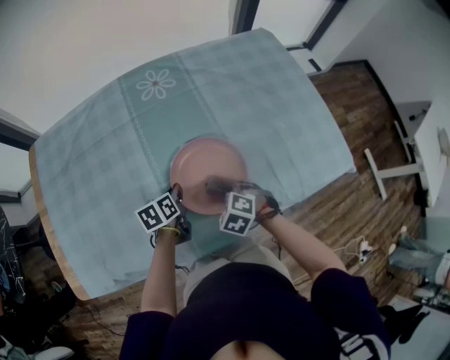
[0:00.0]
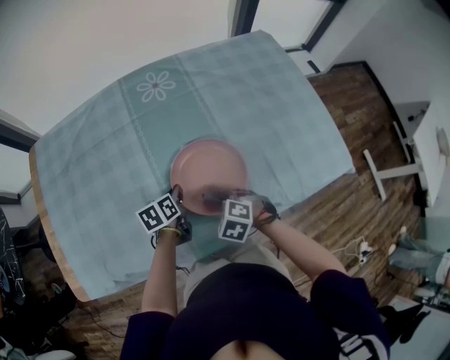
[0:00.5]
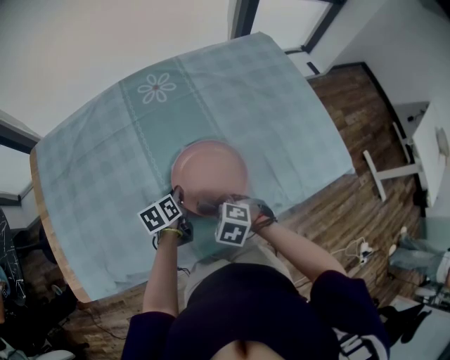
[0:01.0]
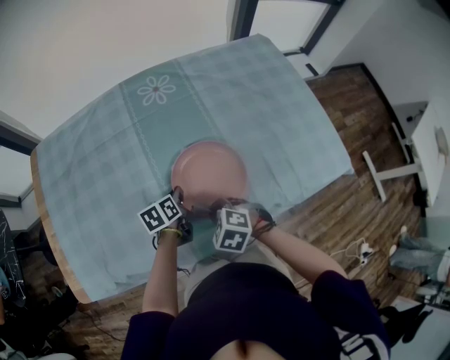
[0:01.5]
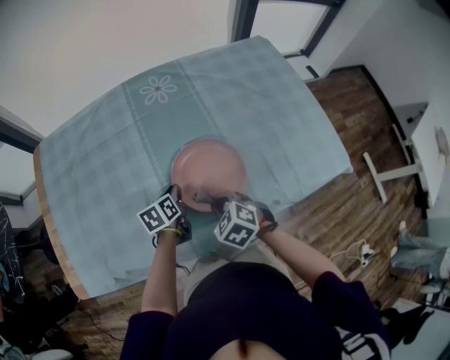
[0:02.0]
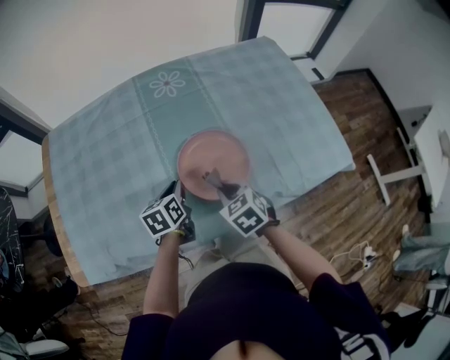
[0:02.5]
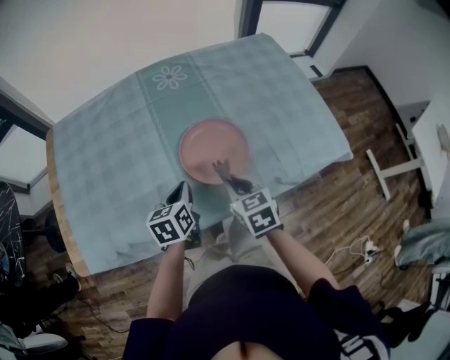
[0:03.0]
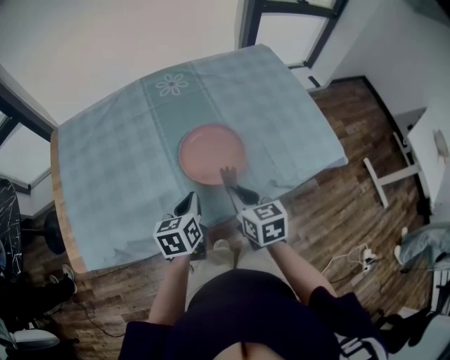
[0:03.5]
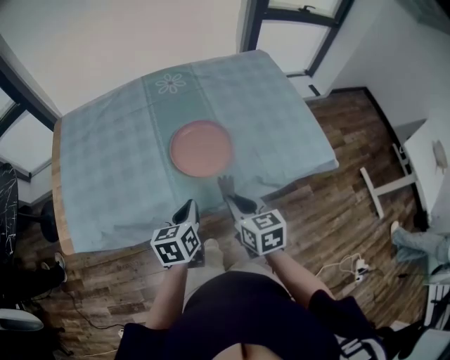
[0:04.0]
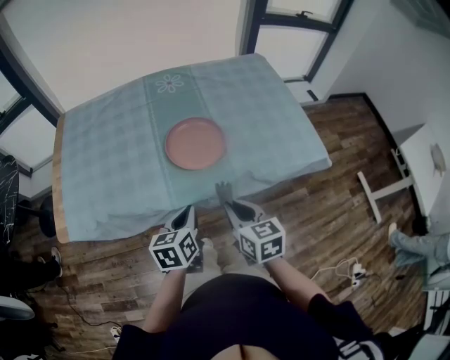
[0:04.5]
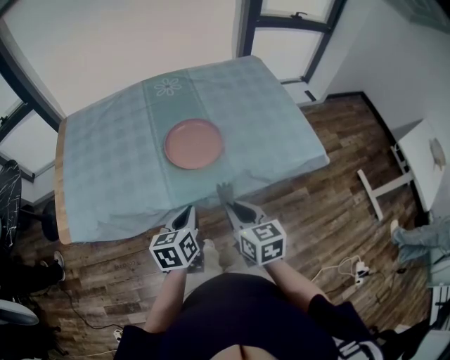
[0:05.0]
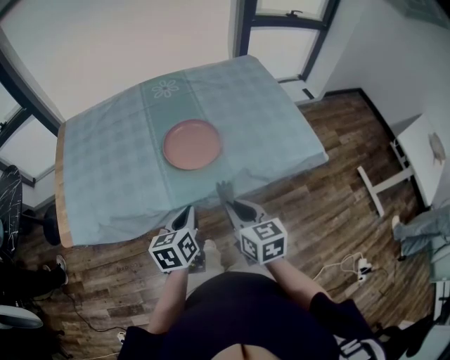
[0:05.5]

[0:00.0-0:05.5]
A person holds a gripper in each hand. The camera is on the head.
0:00.0 to 0:02.0: The right gripper goes some 5 cm upward.
0:02.0 to 0:03.5: The right gripper is displaced upward and backward by approximately 10 cm, and turns by about 50 degrees, while the left gripper shifts some 20 cm backward and upward.
0:03.5 to 0:05.5: Both grippers travel together backward and to the right, about 15 cm.

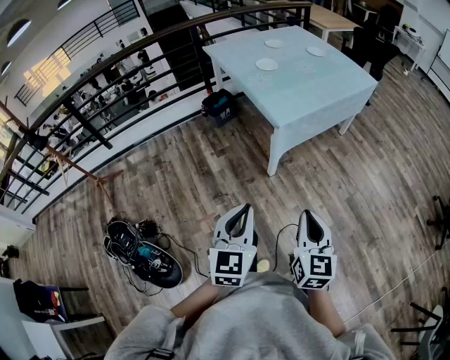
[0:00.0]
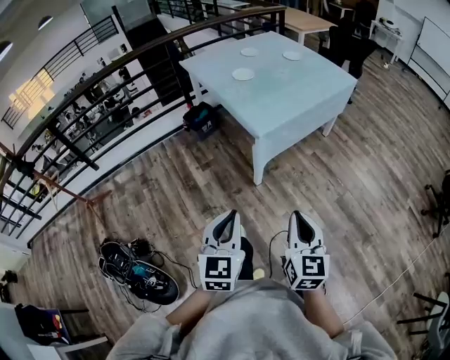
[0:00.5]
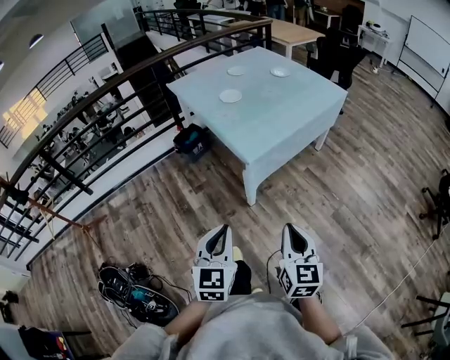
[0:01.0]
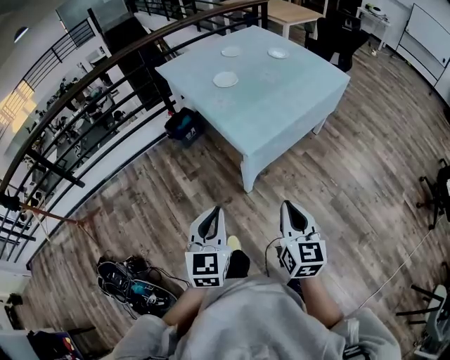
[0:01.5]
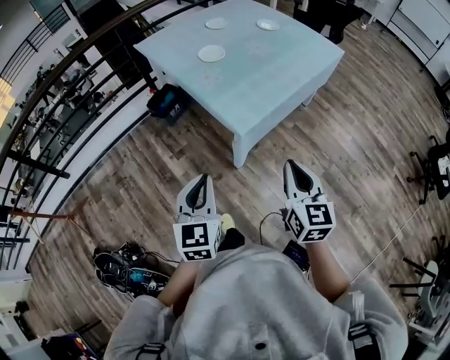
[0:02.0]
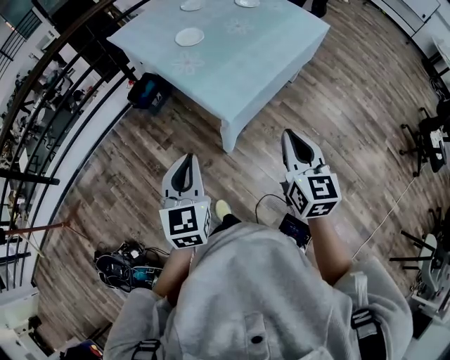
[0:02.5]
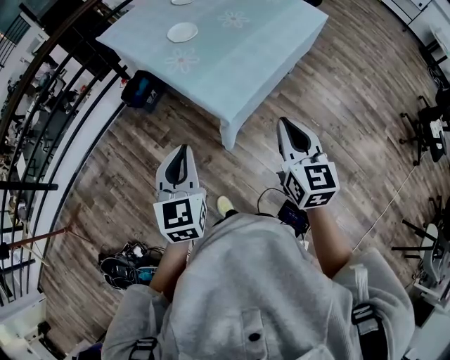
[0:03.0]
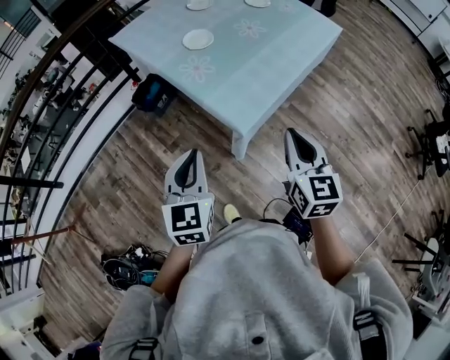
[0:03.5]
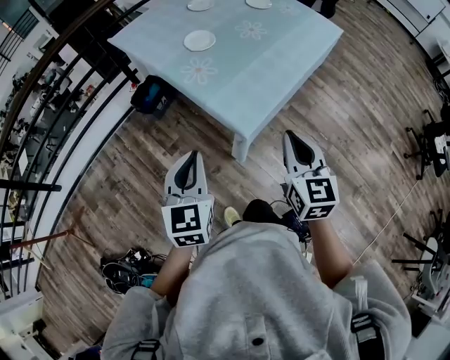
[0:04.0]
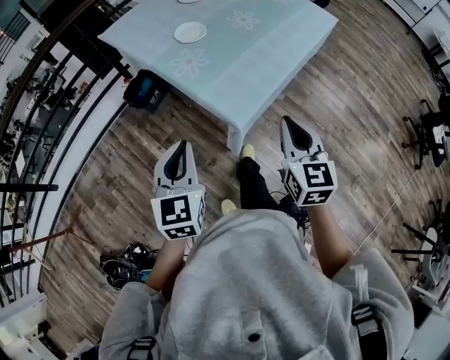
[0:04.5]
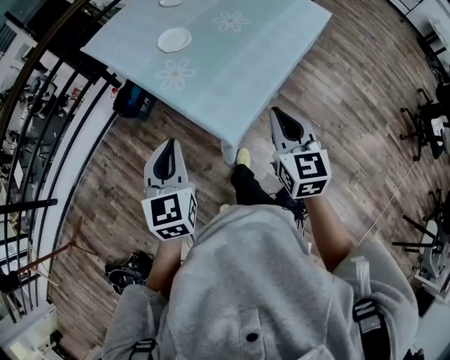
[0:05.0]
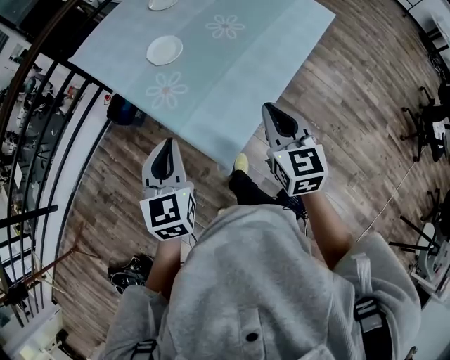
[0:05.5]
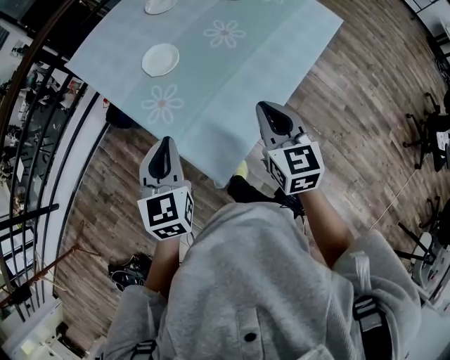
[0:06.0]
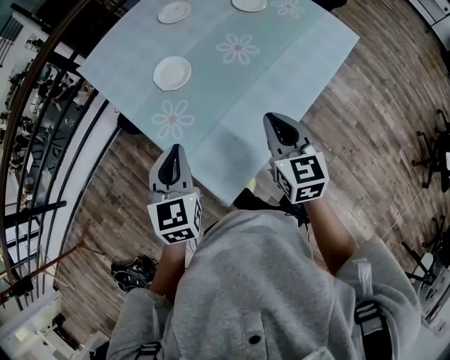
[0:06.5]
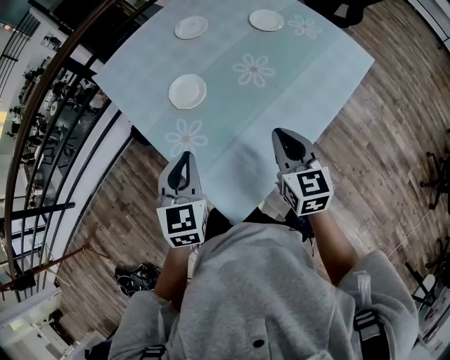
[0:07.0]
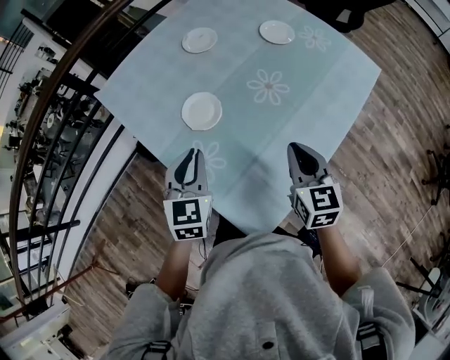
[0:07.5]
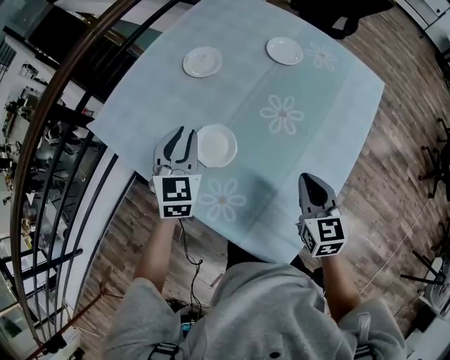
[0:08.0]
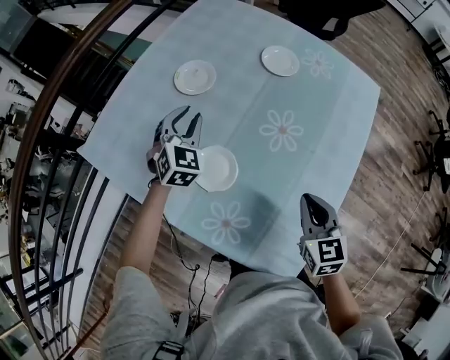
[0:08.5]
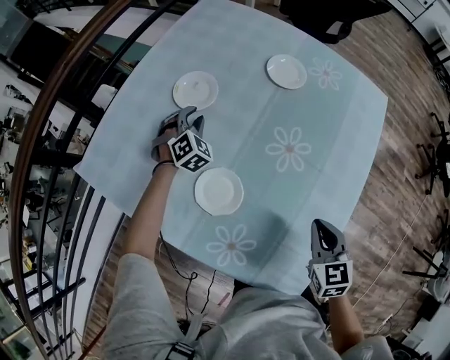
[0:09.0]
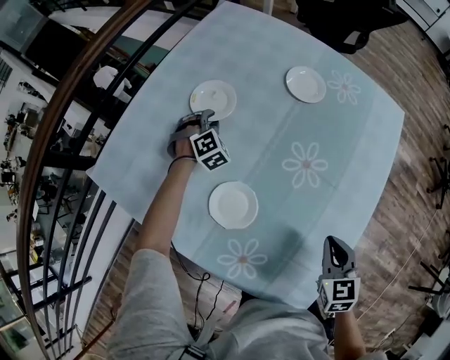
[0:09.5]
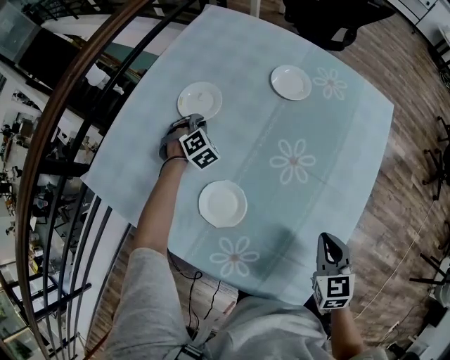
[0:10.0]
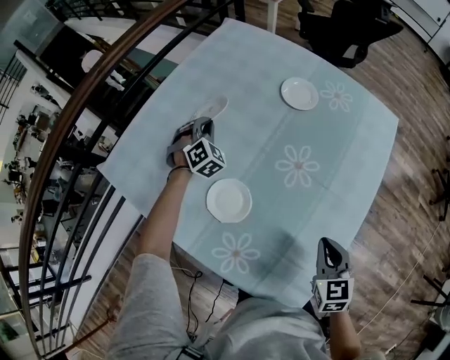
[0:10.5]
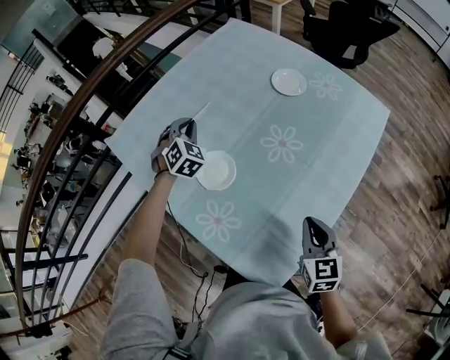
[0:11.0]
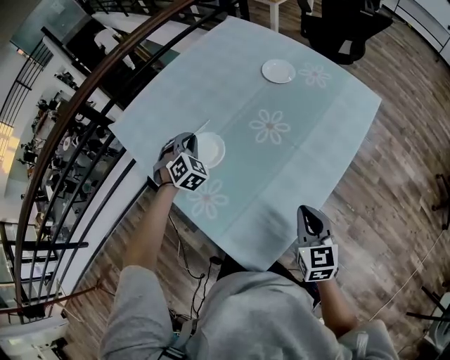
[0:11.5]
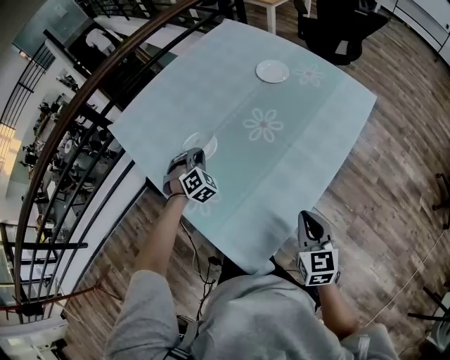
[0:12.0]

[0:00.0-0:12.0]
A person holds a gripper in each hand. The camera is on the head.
0:00.0 to 0:02.0: Both grippers travel together forward, some 25 cm.
0:02.0 to 0:04.0: Both grippers travel together forward, about 15 cm.
0:04.0 to 0:06.0: The two grippers go some 25 cm forward.
0:06.0 to 0:08.0: The left gripper heads forward, covering about 35 cm, and swivels some 20 degrees. Meanwhile the right gripper is displaced forward by roughly 15 cm.
0:08.0 to 0:10.0: The left gripper travels forward and downward by about 30 cm, and twists some 40 degrees clockwise, seen from behind.
0:10.0 to 0:12.0: The left gripper goes roughly 30 cm backward. The right gripper is displaced backward and to the right by approximately 15 cm, and changes its angle by some 20 degrees.

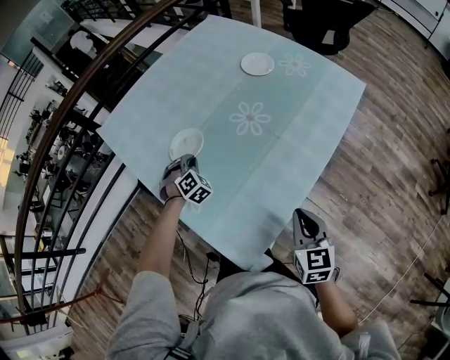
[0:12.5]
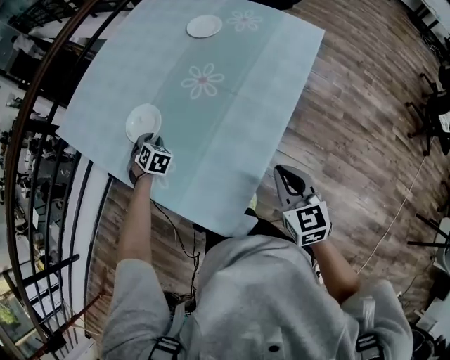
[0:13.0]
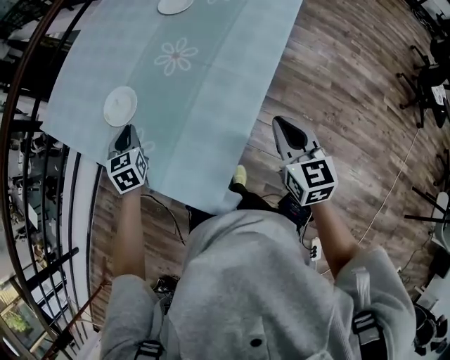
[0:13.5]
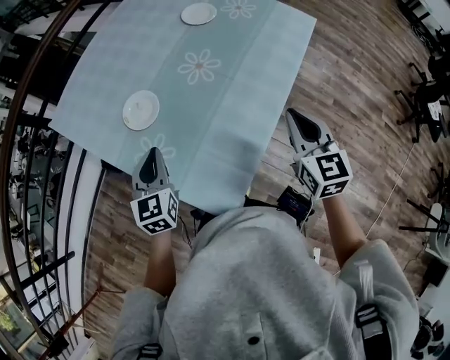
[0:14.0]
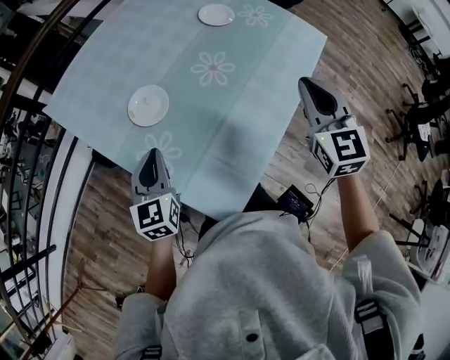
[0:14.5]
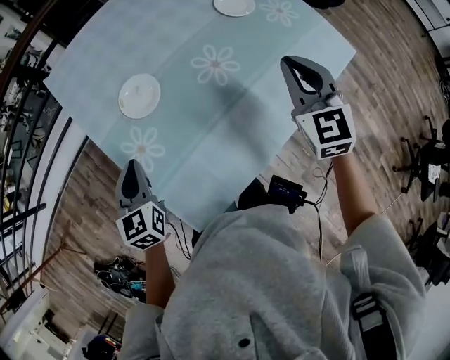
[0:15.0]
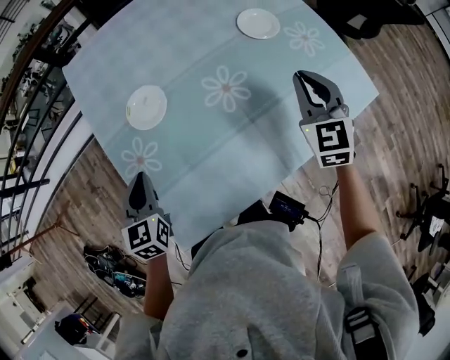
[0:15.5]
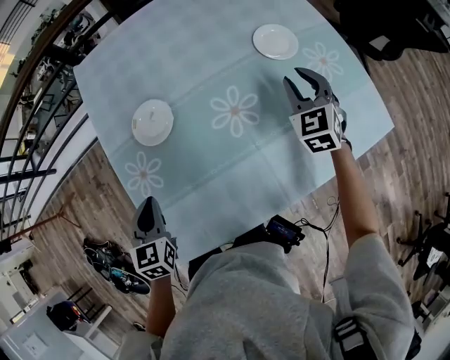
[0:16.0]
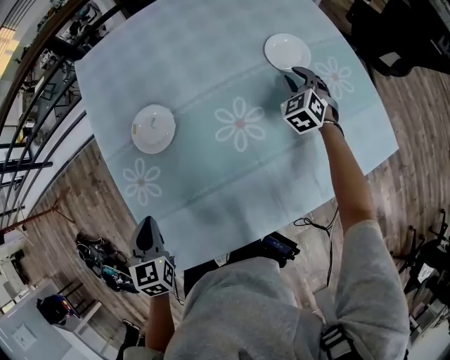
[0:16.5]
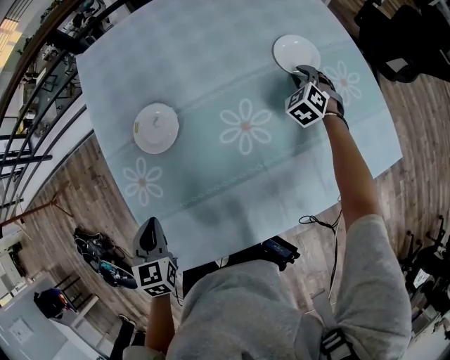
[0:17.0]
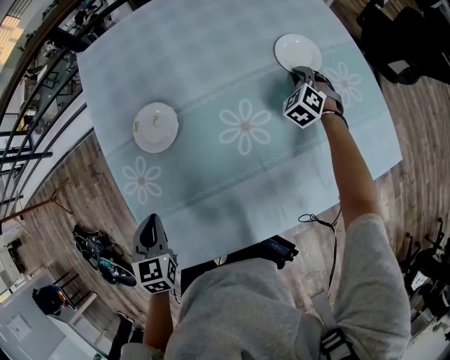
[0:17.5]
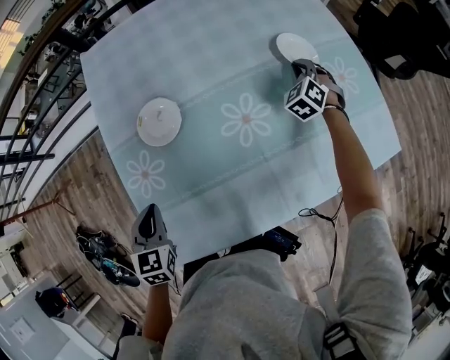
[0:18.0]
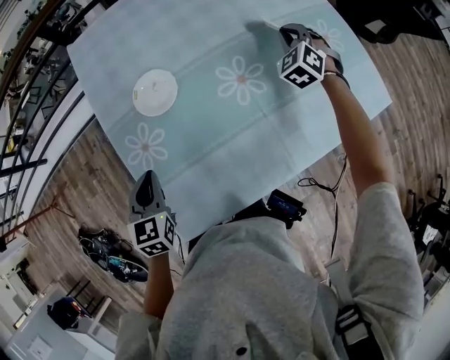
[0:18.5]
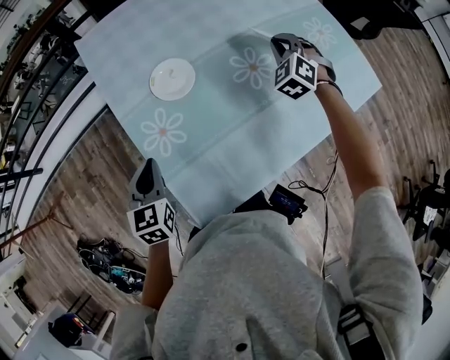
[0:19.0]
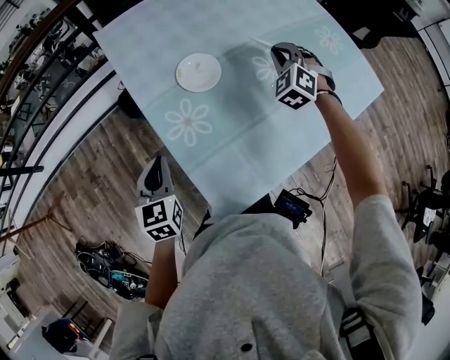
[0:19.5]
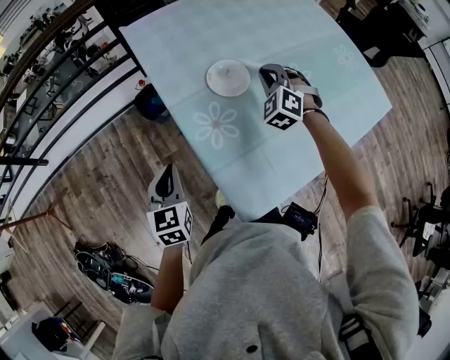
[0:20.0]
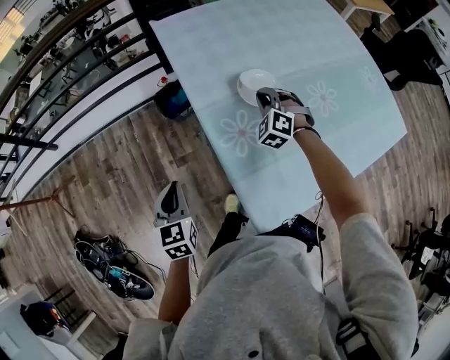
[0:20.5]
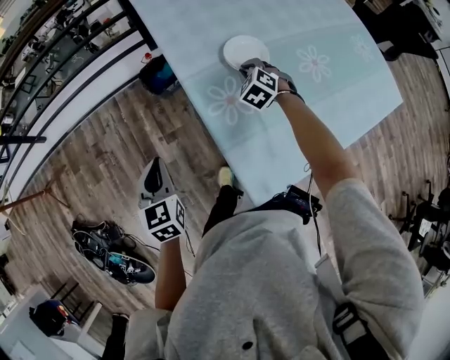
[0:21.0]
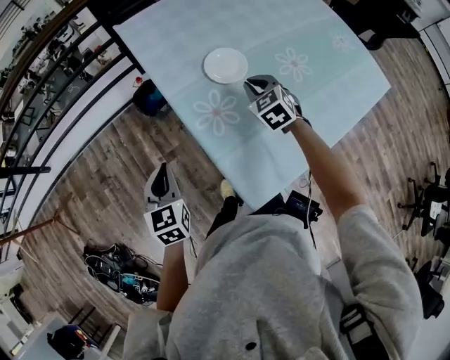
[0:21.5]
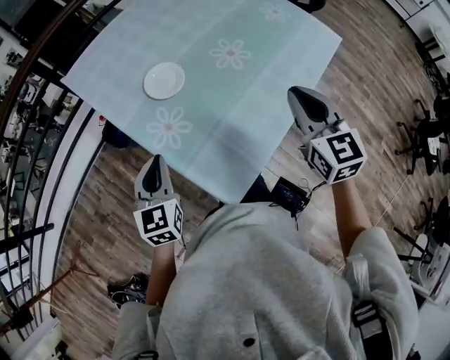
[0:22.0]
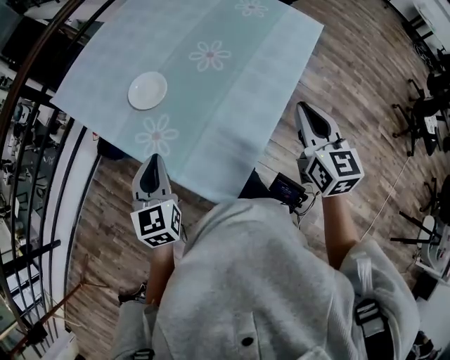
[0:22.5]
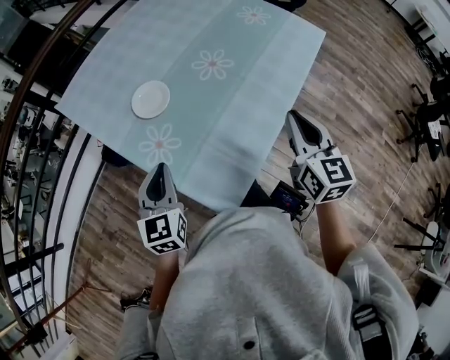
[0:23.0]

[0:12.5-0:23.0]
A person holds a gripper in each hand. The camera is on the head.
0:12.5 to 0:14.5: The right gripper travels upward and forward by about 20 cm, and turns by approximately 20 degrees; the left gripper shifts roughly 20 cm upward and backward, and rolls counterclockwise, seen from behind, by some 60 degrees.
0:14.5 to 0:16.5: The right gripper changes place by some 50 cm, and swivels about 40 degrees. Meanwhile the left gripper heads downward, covering some 5 cm, and rotates some 40 degrees.
0:16.5 to 0:19.0: The left gripper moves to the left, about 10 cm; the right gripper shifts roughly 20 cm to the left, backward and upward.
0:19.0 to 0:21.0: The left gripper heads to the left, covering some 20 cm, while the right gripper goes about 35 cm to the left, and rotates about 20 degrees.
0:21.0 to 0:23.0: The right gripper changes place by approximately 50 cm, and twists roughly 70 degrees clockwise, seen from behind. The left gripper changes place by roughly 25 cm, and turns by approximately 40 degrees.
